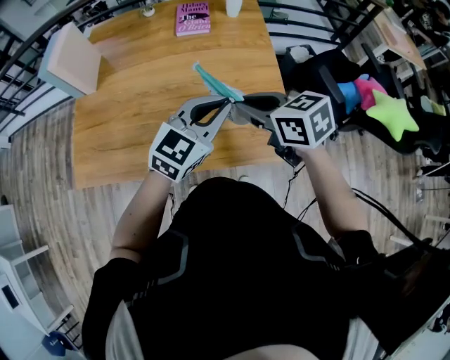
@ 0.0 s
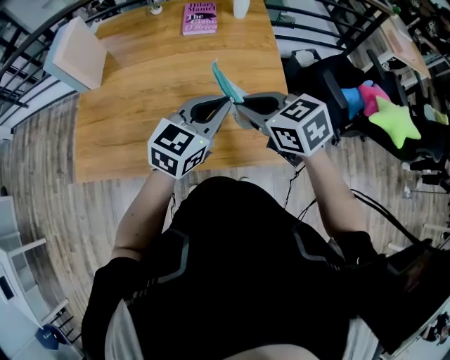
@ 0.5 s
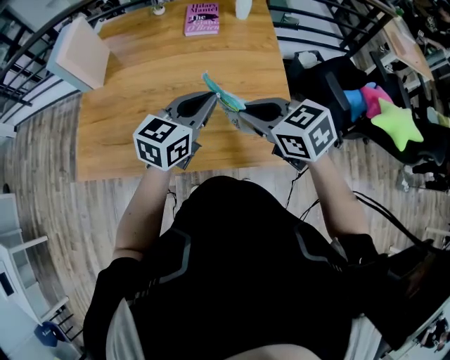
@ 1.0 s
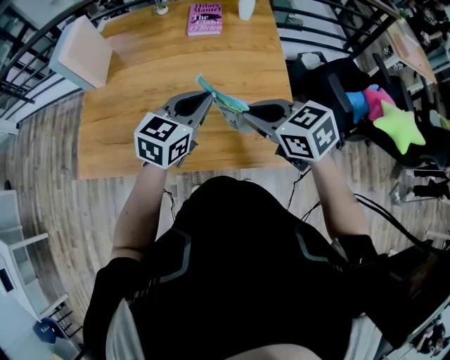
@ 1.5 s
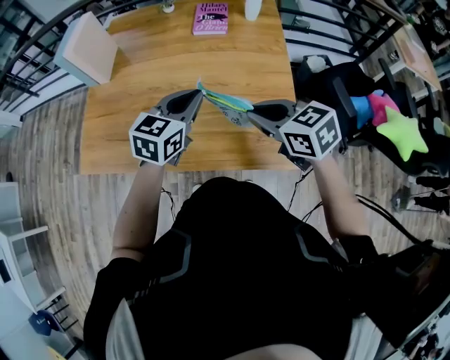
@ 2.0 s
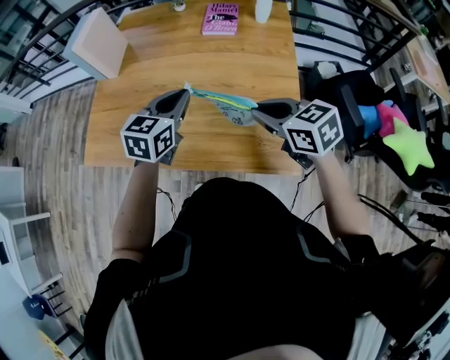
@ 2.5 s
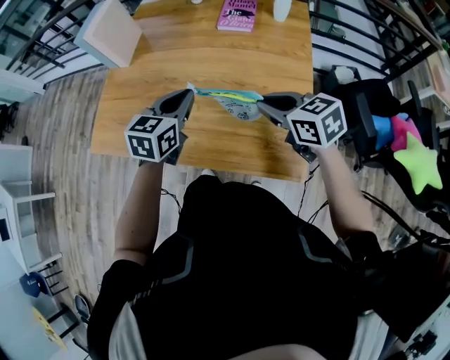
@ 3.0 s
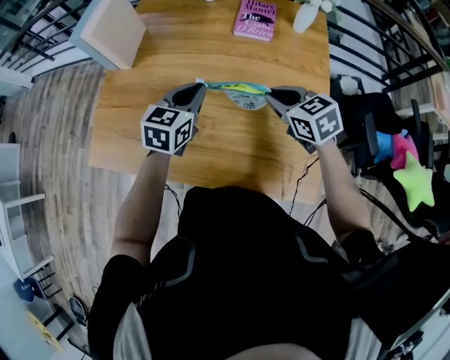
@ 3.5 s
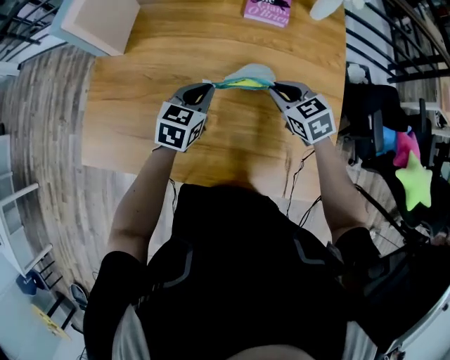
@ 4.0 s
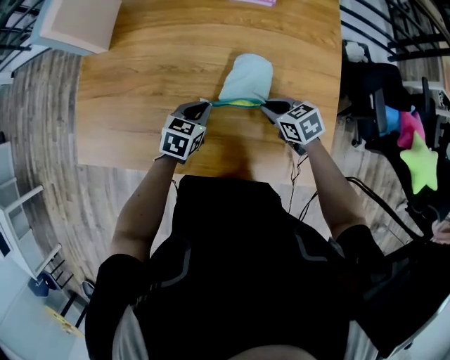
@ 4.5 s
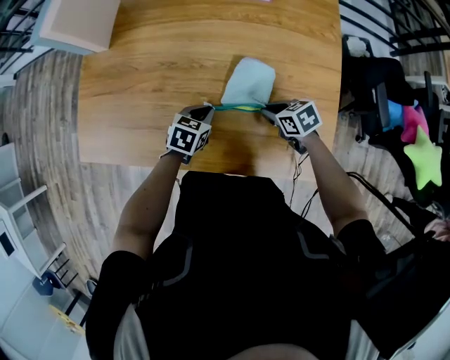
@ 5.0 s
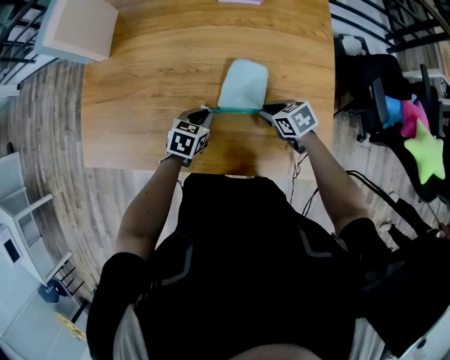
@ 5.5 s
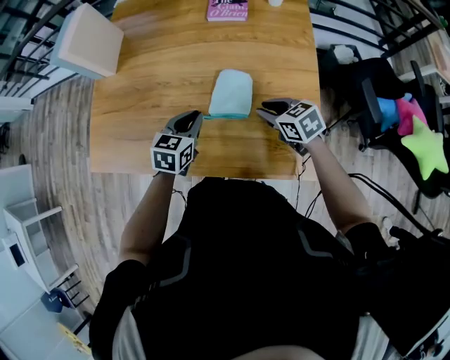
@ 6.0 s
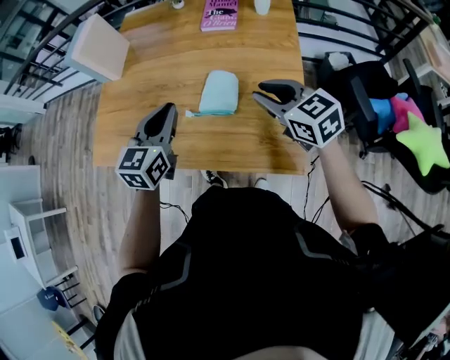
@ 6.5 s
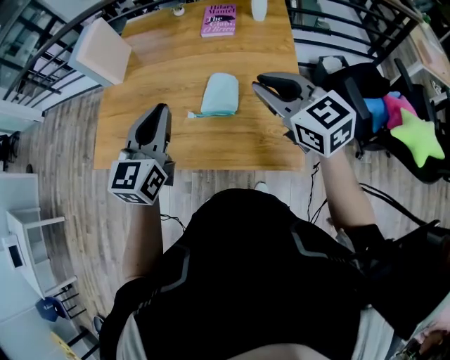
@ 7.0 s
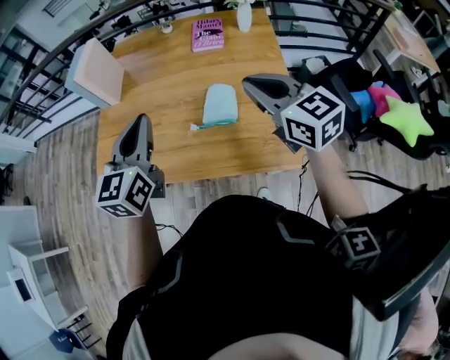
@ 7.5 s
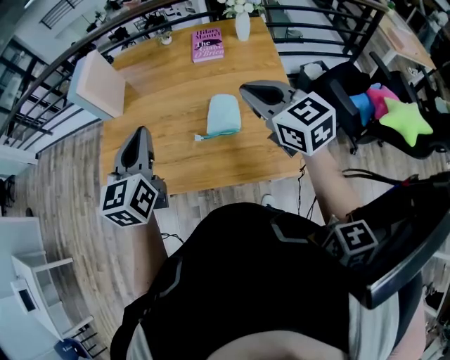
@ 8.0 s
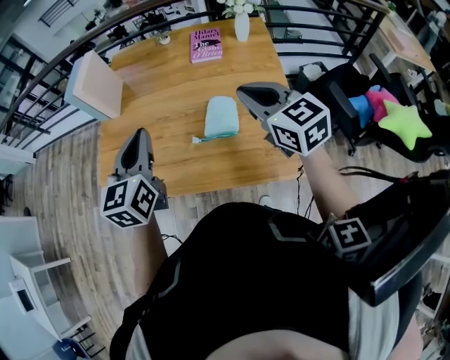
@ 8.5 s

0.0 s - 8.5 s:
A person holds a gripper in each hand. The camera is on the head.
0.0 s - 2.0 s: The left gripper heads to the left and forward, covering some 10 cm, and rotates roughly 20 degrees.
2.0 s - 4.0 s: The right gripper shifts some 30 cm forward and downward, while the left gripper is displaced forward, downward and to the left by approximately 25 cm.
4.0 s - 6.5 s: The left gripper is displaced backward and upward by roughly 25 cm, while the right gripper moves backward, upward and to the right, approximately 25 cm, and changes its angle by about 20 degrees.
6.5 s - 8.5 s: Both grippers travel together upward and to the left, approximately 15 cm.

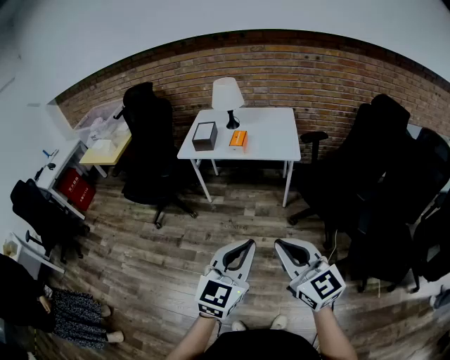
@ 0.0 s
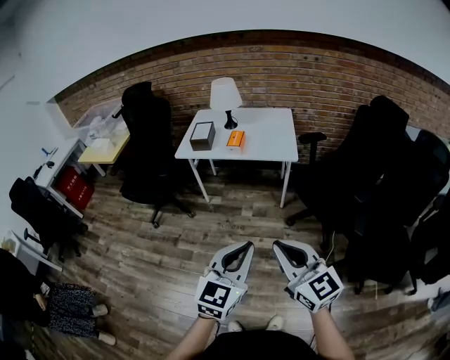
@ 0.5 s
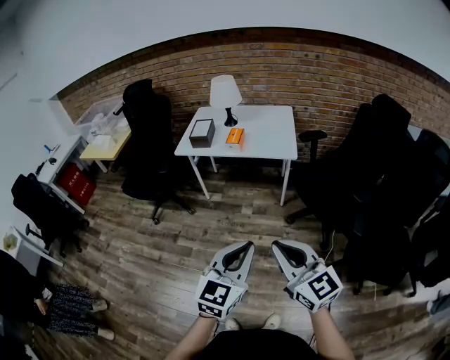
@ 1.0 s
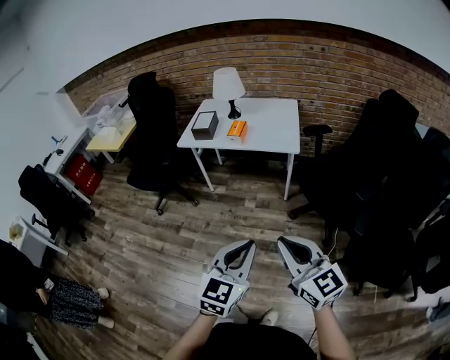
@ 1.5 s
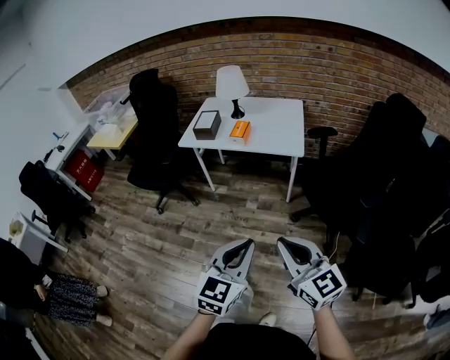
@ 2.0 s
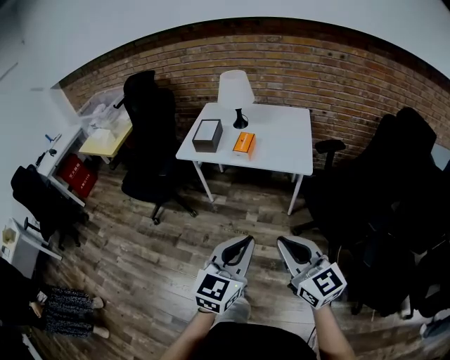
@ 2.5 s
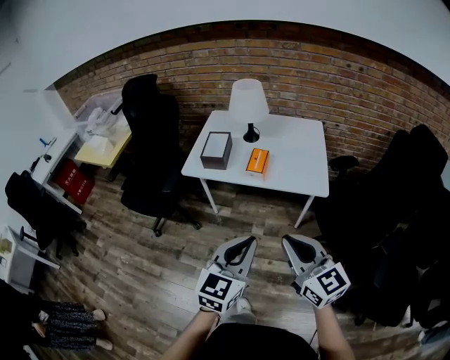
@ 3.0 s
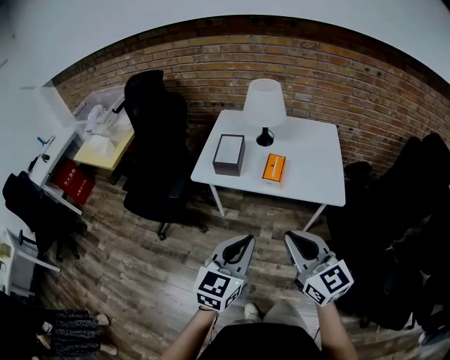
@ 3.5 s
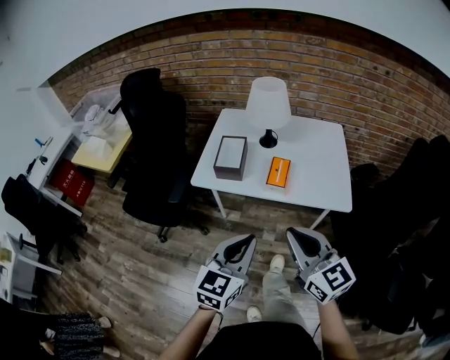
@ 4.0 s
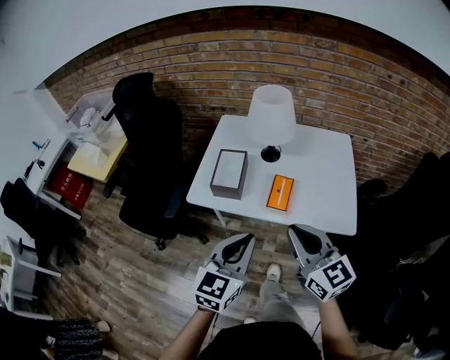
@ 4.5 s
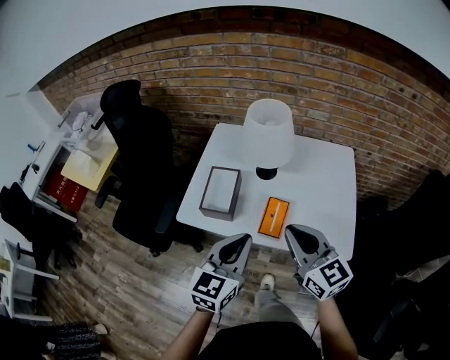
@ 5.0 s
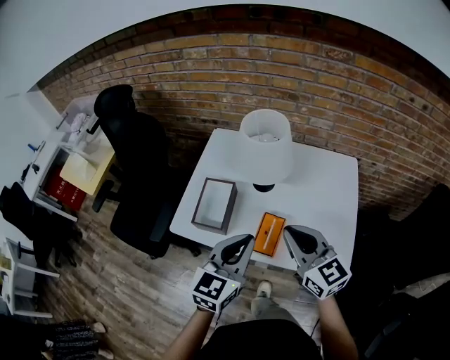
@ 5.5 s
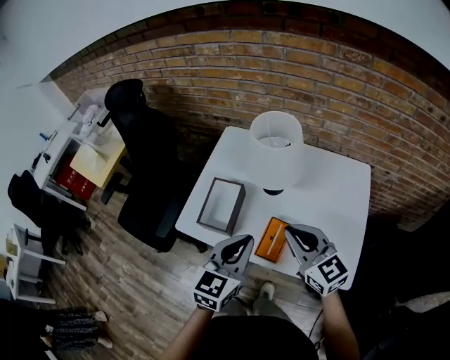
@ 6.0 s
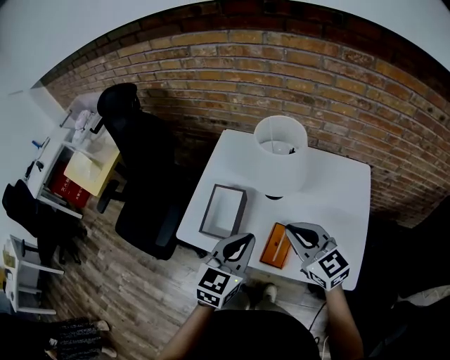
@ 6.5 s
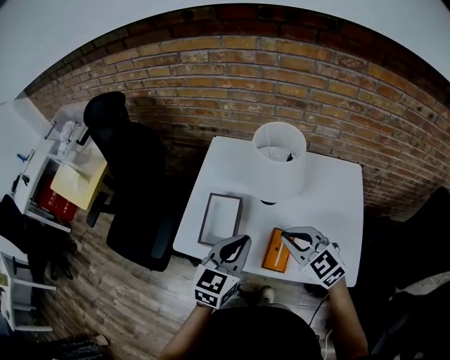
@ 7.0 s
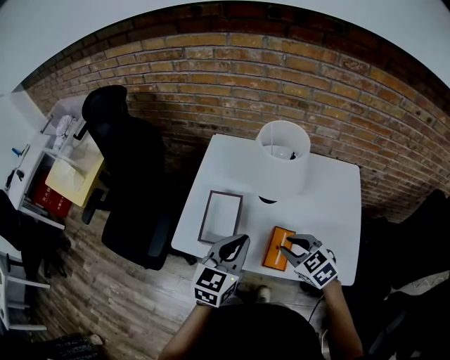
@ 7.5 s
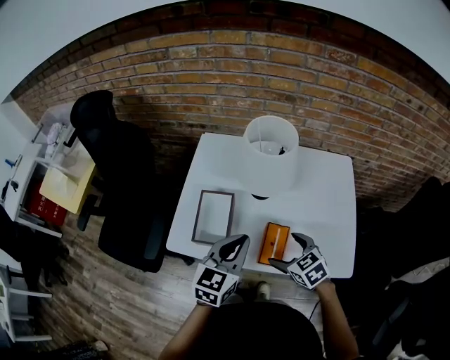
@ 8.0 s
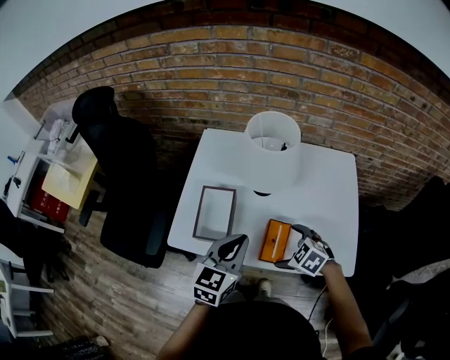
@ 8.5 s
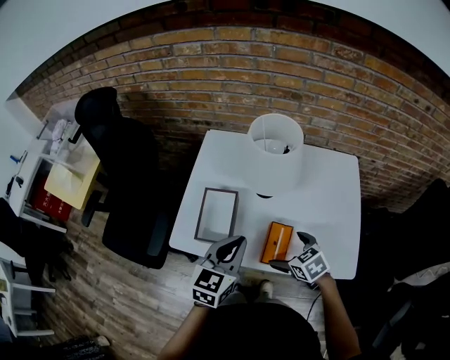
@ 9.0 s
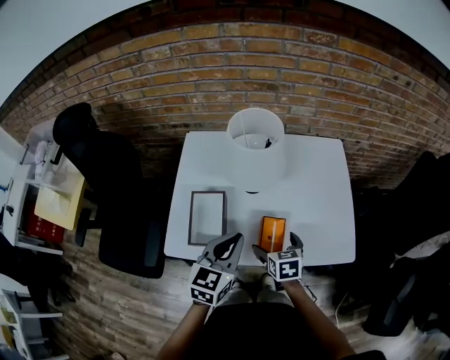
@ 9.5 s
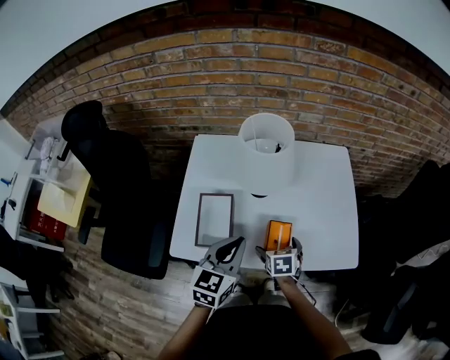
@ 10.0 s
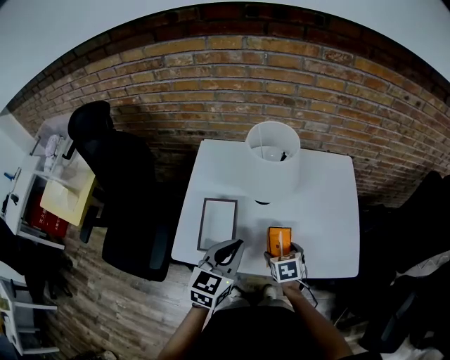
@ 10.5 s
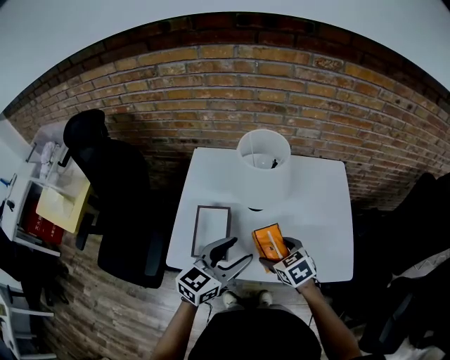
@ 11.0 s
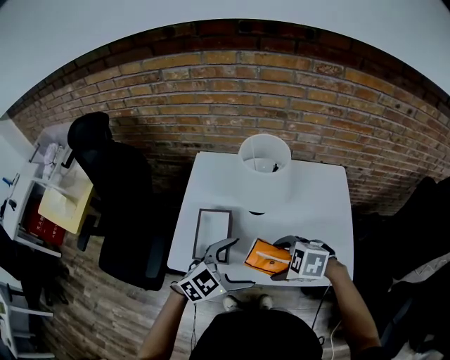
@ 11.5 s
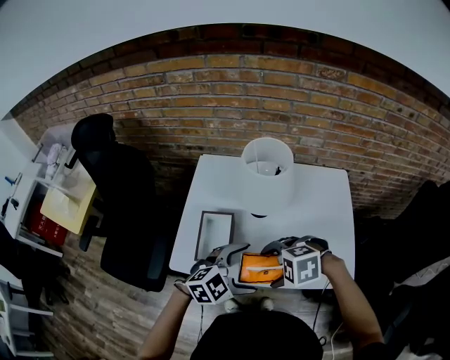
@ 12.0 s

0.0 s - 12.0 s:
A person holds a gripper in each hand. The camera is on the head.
0.0 s - 2.0 s: Both grippers move to the right, roughly 5 cm.
2.0 s - 4.0 s: The pair of grippers is taken forward and to the left, about 40 cm.
4.0 s - 6.0 s: The two grippers go about 30 cm forward.
6.0 s - 8.0 s: The left gripper moves some 5 cm. Meanwhile the right gripper is displaced downward by some 15 cm, tips its fingers downward by approximately 30 degrees, and opens up.
8.0 s - 10.0 s: The right gripper goes about 10 cm downward, and rotates some 40 degrees.
10.0 s - 12.0 s: The right gripper moves upward, approximately 15 cm, and twists roughly 80 degrees counterclockwise, seen from behind; the left gripper ends up some 5 cm from where it was, turns by approximately 50 degrees, and opens its fingers.

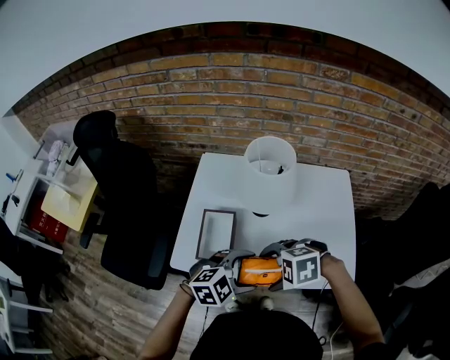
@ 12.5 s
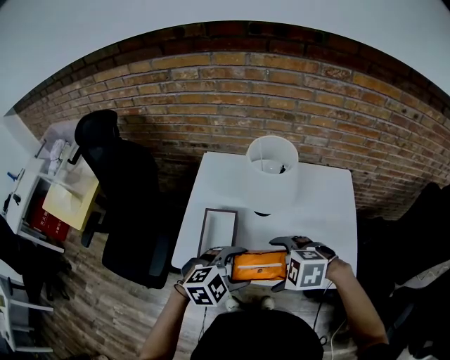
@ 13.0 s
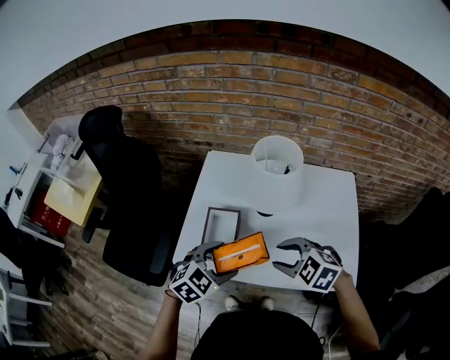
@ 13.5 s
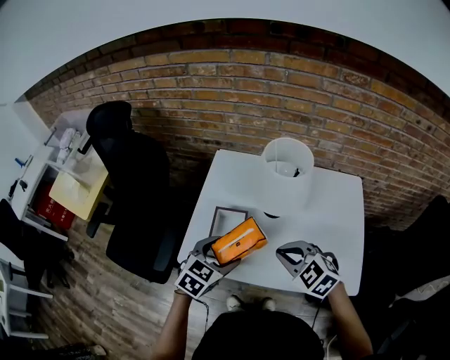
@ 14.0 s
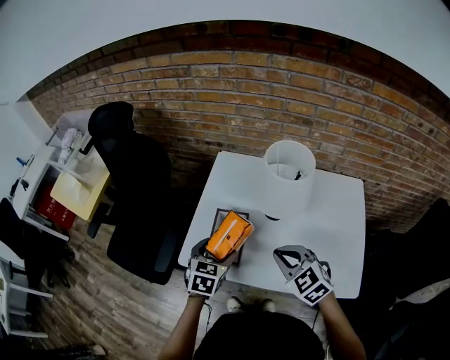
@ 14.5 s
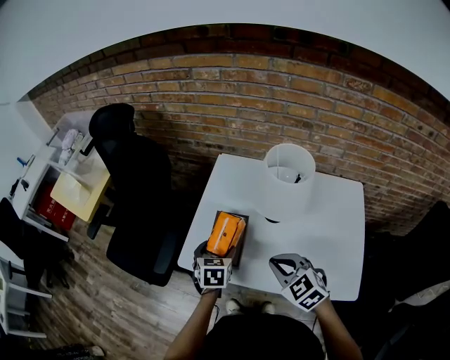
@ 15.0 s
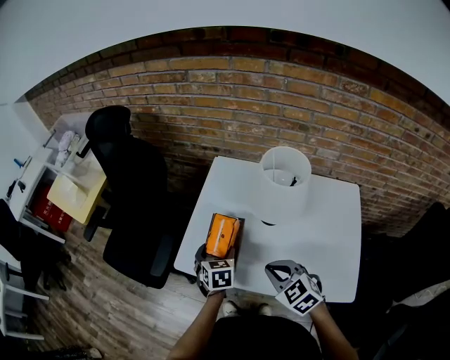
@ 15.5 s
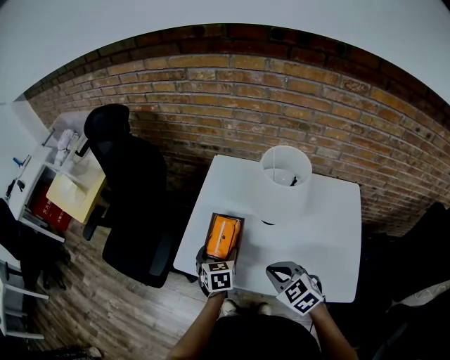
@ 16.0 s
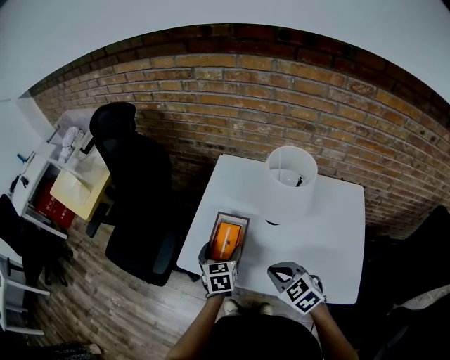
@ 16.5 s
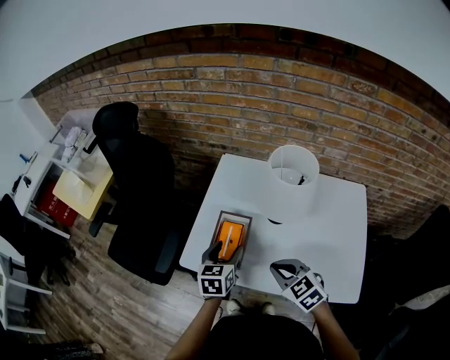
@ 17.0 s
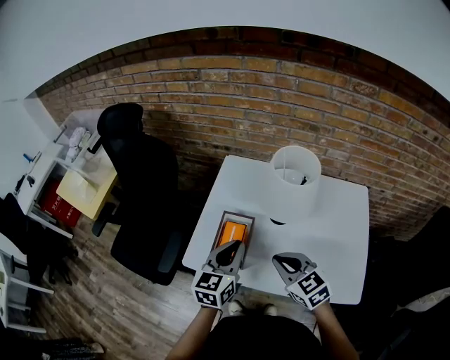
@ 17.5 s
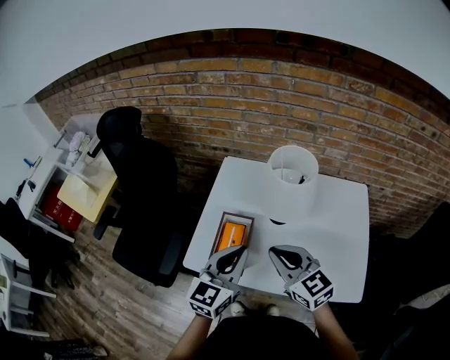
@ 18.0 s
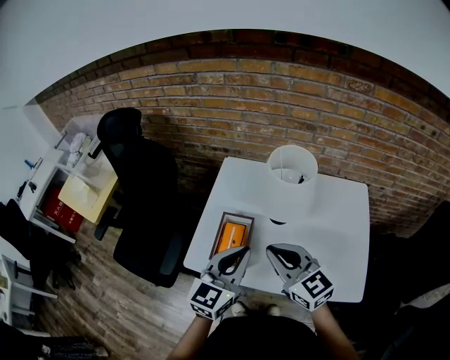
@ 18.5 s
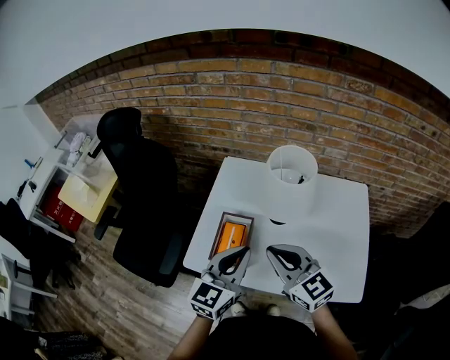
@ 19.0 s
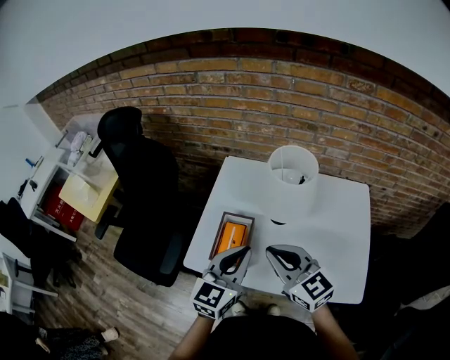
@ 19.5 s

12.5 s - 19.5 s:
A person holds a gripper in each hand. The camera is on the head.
12.5 s - 14.5 s: The left gripper shifts by about 20 cm, and rotates approximately 60 degrees, while the right gripper changes place by some 10 cm, turns by some 50 degrees, and closes its fingers.
14.5 s - 16.0 s: The left gripper moves downward, some 5 cm, and turns by some 20 degrees, while the right gripper ends up some 5 cm from where it was.
16.0 s - 17.5 s: The right gripper moves approximately 5 cm; the left gripper goes roughly 15 cm upward, changes its angle by some 30 degrees, and closes its fingers.
17.5 s - 19.5 s: The right gripper moves upward, approximately 10 cm; the left gripper moves about 5 cm.
